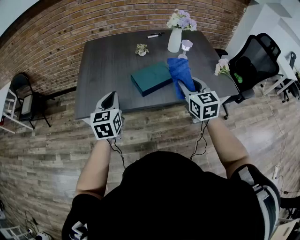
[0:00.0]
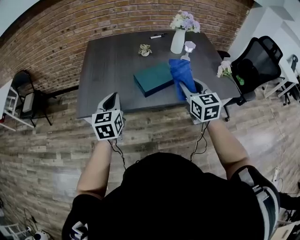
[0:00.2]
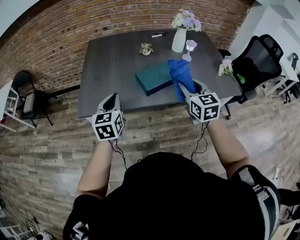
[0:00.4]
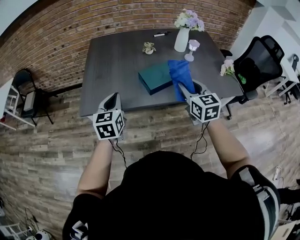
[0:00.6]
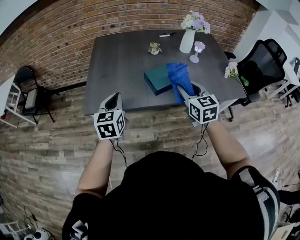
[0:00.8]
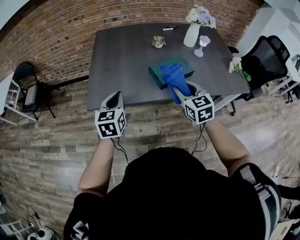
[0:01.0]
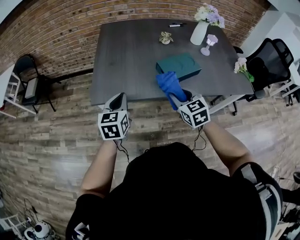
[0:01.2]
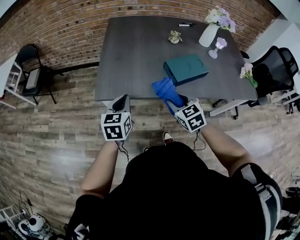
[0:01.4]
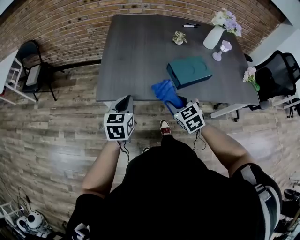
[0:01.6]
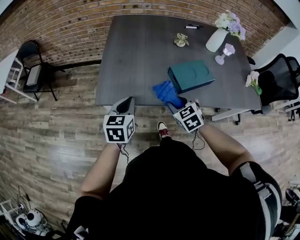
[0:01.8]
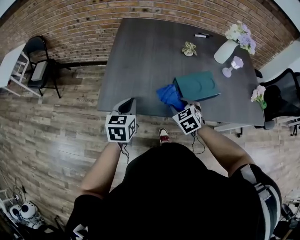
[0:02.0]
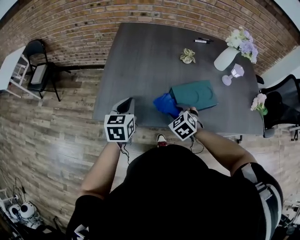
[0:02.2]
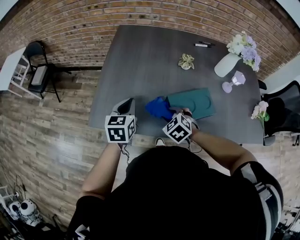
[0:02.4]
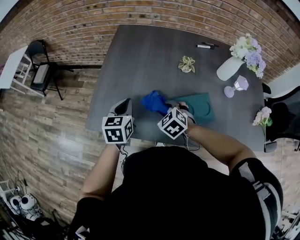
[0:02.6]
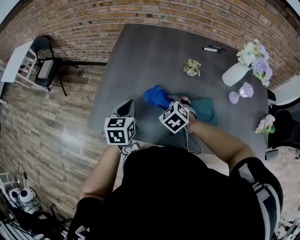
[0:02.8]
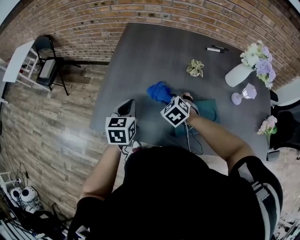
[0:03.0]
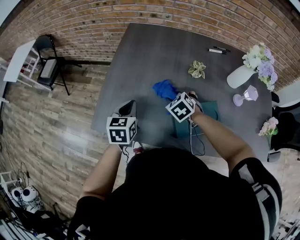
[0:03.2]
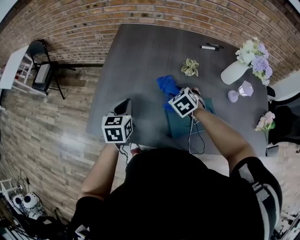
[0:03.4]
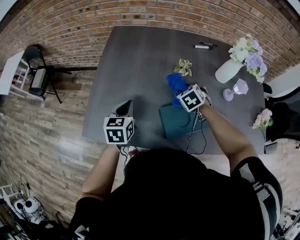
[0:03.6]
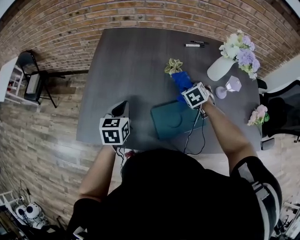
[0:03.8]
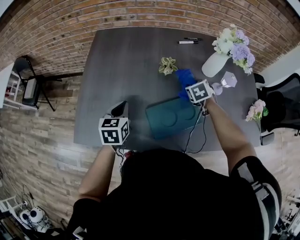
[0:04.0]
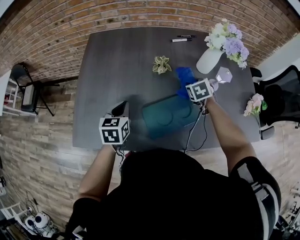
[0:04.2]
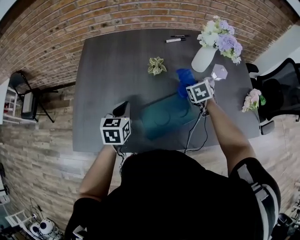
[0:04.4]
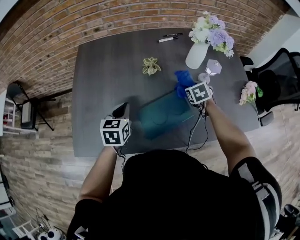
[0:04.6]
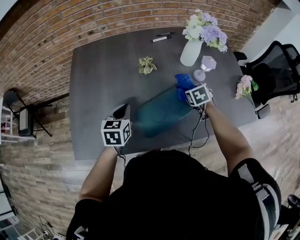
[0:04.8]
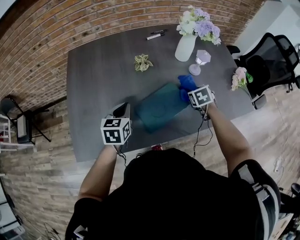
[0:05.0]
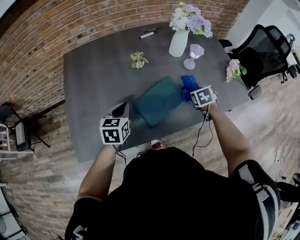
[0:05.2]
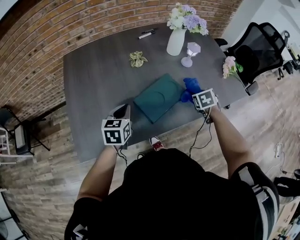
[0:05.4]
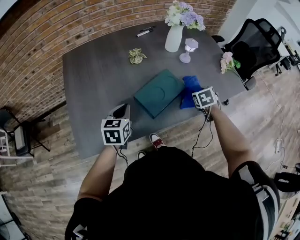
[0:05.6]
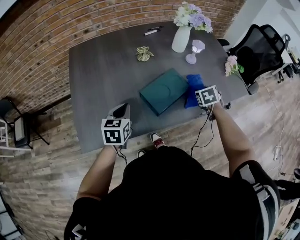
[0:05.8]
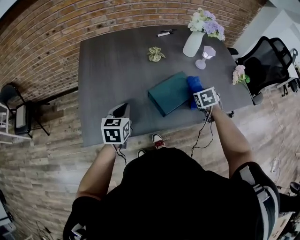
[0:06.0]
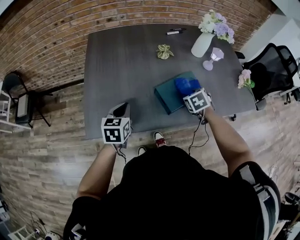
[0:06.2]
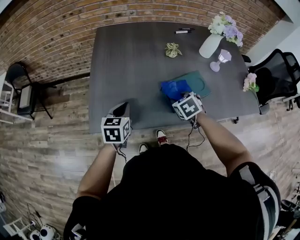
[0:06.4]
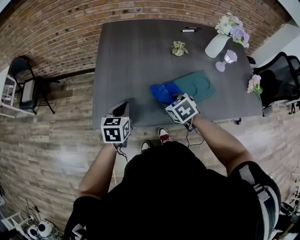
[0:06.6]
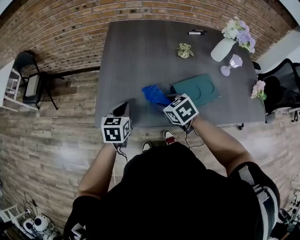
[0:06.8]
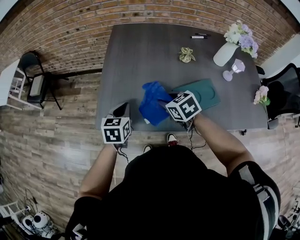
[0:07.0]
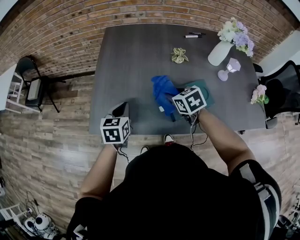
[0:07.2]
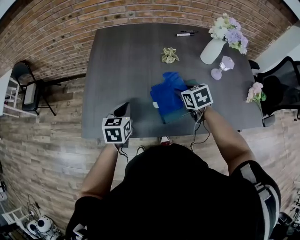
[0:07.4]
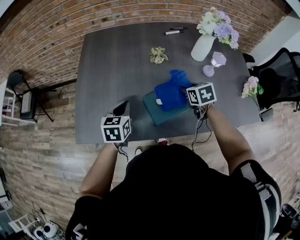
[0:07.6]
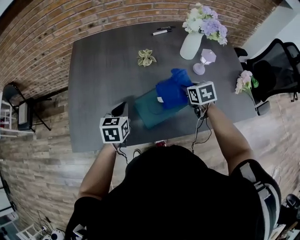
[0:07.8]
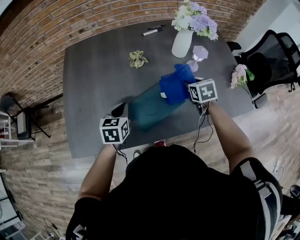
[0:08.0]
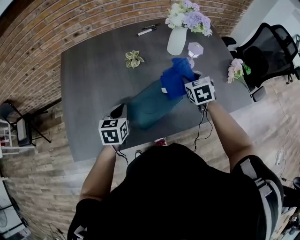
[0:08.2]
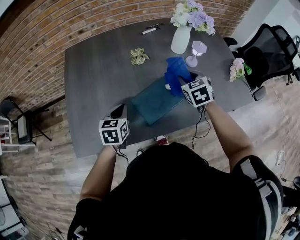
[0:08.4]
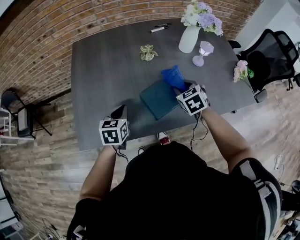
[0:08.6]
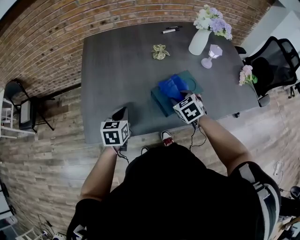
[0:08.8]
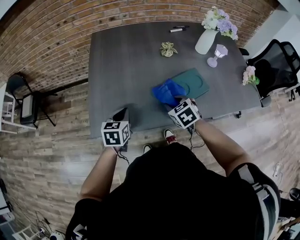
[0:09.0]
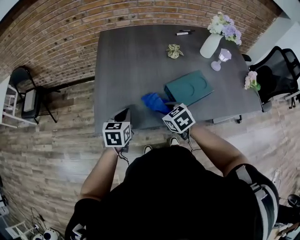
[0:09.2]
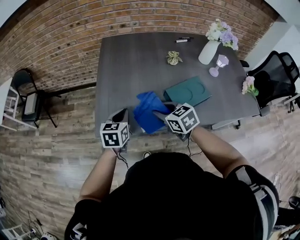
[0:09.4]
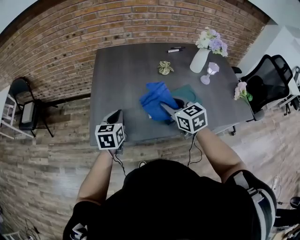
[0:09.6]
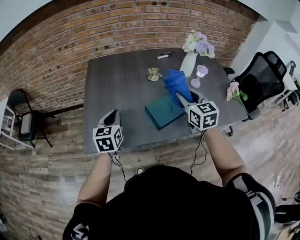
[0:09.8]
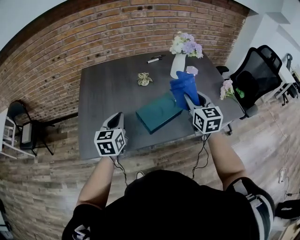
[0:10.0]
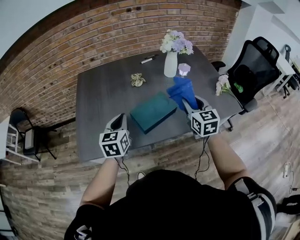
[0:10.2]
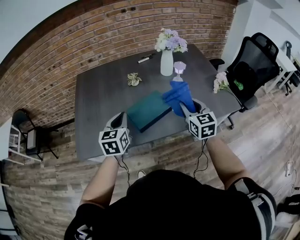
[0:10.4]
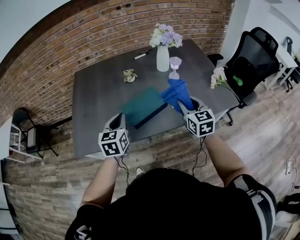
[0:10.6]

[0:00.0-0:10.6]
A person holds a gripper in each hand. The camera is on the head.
0:00.0 to 0:01.6: The right gripper goes roughly 30 cm to the left and downward, and changes its angle by approximately 30 degrees, while the left gripper shifts about 15 cm to the left and downward.
0:01.6 to 0:03.0: The left gripper heads forward and to the right, covering some 20 cm. The right gripper goes roughly 25 cm forward, and rotates some 20 degrees.
0:03.0 to 0:04.6: The right gripper shifts by some 35 cm, and turns by about 40 degrees; the left gripper changes place by about 15 cm.
0:04.6 to 0:06.0: The two grippers go approximately 15 cm backward.
0:06.0 to 0:07.6: The right gripper swivels approximately 30 degrees.
0:07.6 to 0:09.0: The right gripper is displaced to the left and backward by about 25 cm. Meanwhile the left gripper travels to the left and backward by roughly 15 cm.
0:09.0 to 0:10.6: The two grippers go approximately 30 cm to the right and upward. The right gripper angles its fingers upward, by approximately 40 degrees.

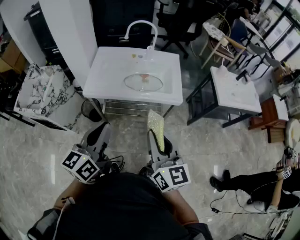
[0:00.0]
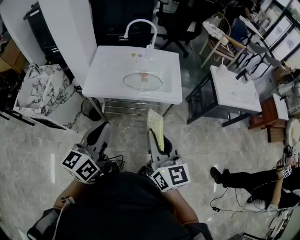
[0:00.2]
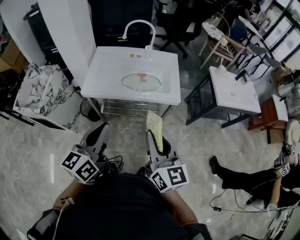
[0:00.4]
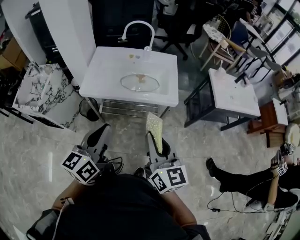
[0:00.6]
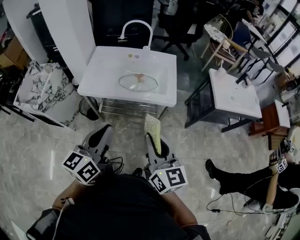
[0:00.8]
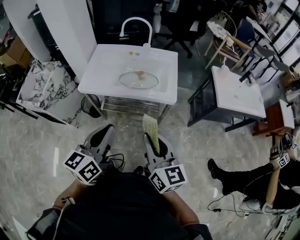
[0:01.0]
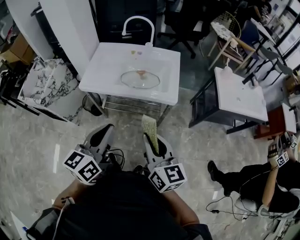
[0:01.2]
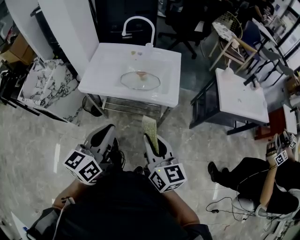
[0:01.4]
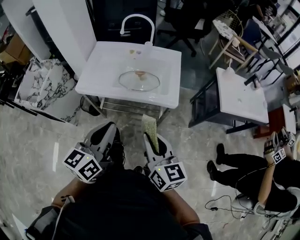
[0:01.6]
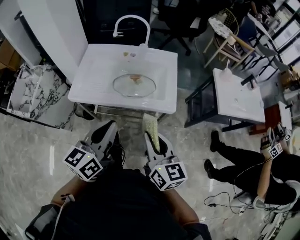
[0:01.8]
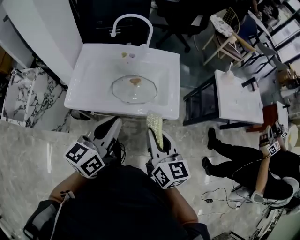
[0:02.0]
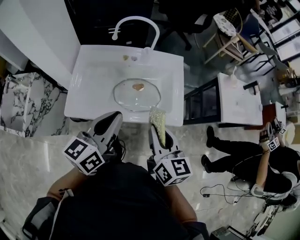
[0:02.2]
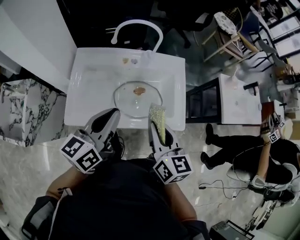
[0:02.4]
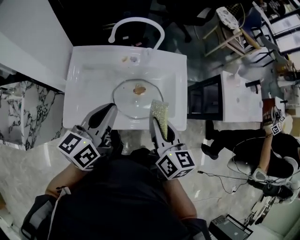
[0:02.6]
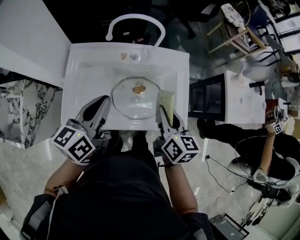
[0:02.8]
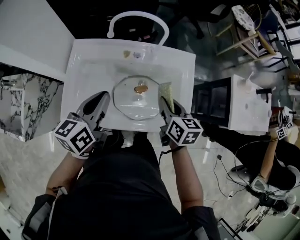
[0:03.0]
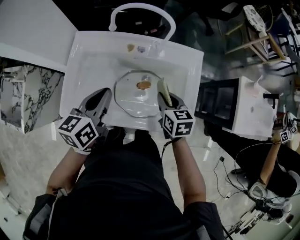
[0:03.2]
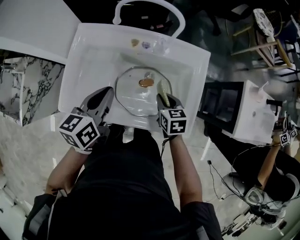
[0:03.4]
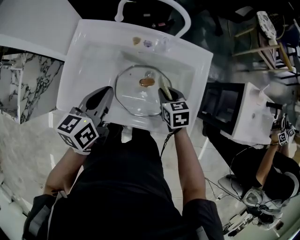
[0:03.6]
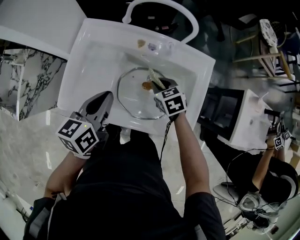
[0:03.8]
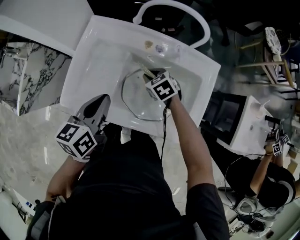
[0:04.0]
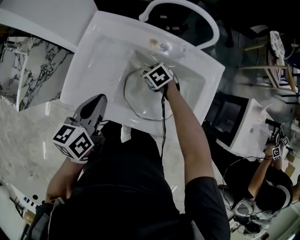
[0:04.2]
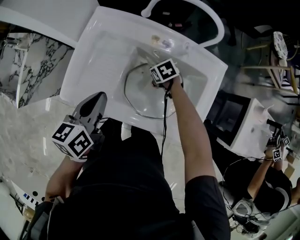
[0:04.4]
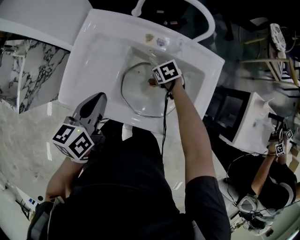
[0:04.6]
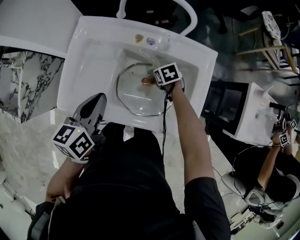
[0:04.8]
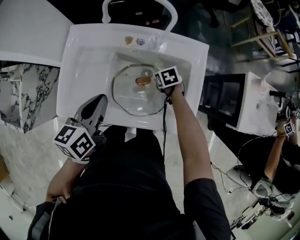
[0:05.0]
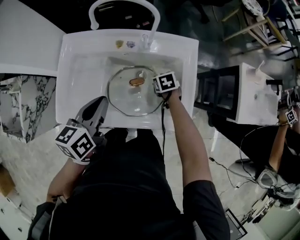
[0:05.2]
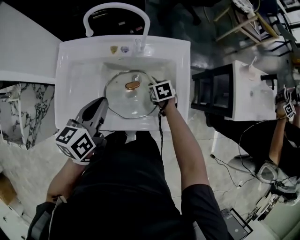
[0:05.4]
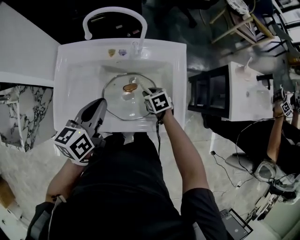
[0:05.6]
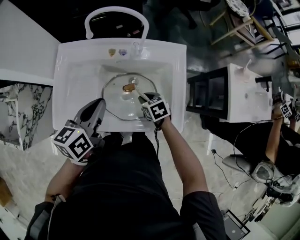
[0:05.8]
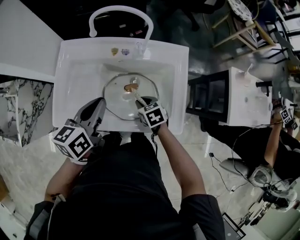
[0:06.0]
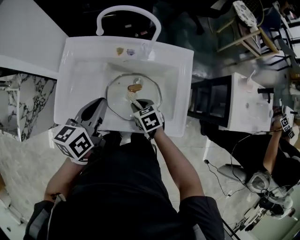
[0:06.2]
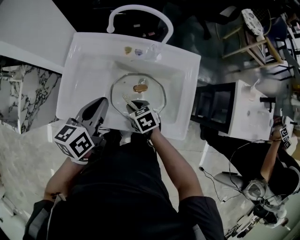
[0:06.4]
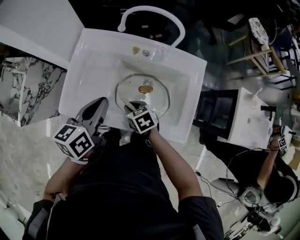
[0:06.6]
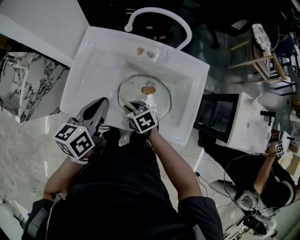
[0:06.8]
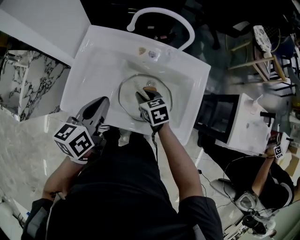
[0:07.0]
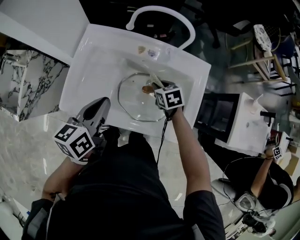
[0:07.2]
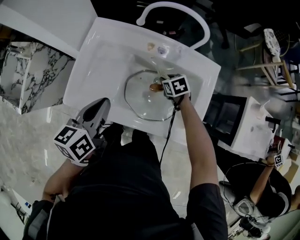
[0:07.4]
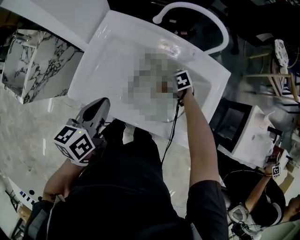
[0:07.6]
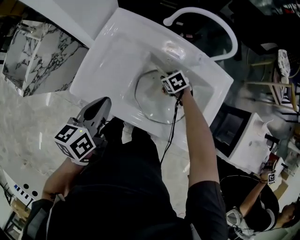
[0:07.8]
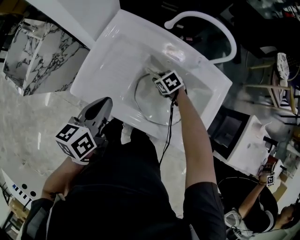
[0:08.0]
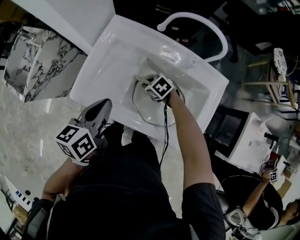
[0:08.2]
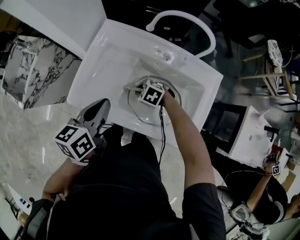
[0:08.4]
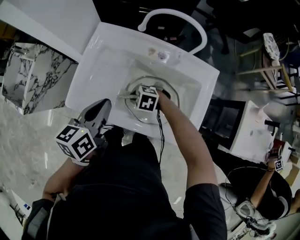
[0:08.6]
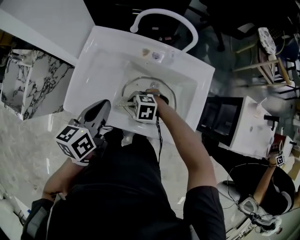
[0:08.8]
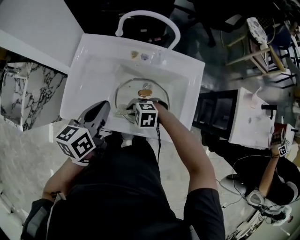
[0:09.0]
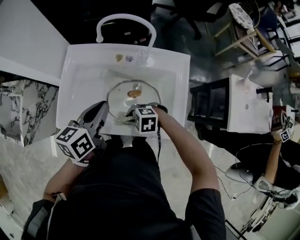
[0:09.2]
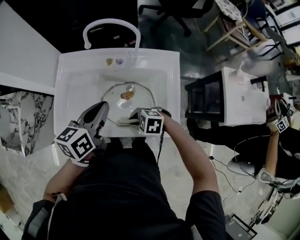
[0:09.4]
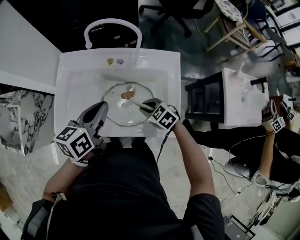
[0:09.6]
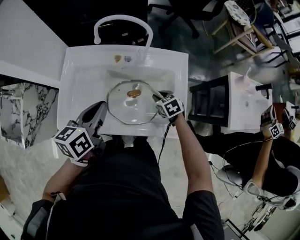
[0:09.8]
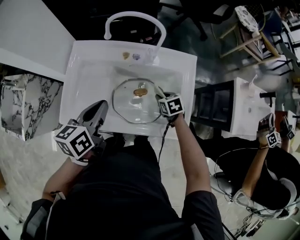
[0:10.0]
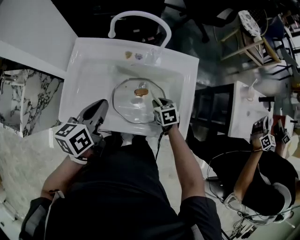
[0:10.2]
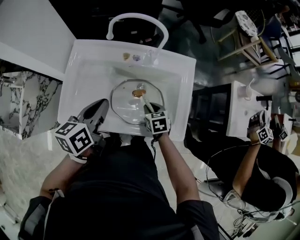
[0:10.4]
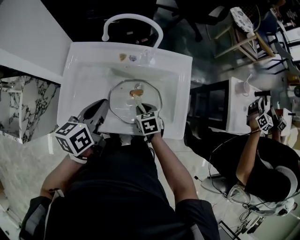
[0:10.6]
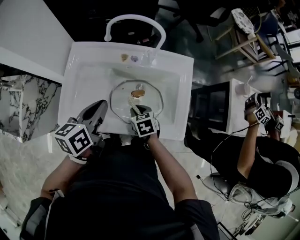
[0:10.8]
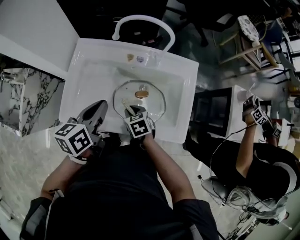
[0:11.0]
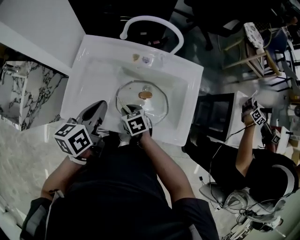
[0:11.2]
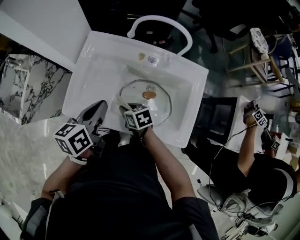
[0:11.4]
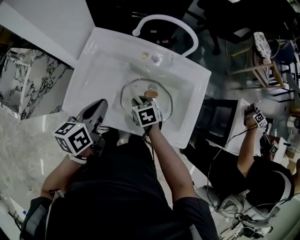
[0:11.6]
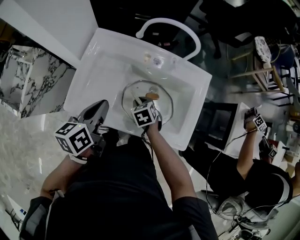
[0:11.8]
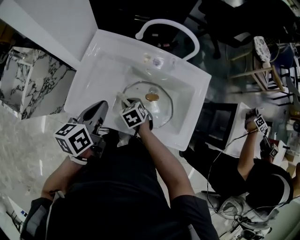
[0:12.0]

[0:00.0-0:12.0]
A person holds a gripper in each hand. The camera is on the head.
0:00.0 to 0:01.6: The left gripper heads to the right, covering roughly 10 cm. Meanwhile the right gripper is displaced to the right, downward and forward by roughly 10 cm.
0:01.6 to 0:03.0: The pair of grippers is taken forward, roughly 40 cm. The right gripper turns by some 30 degrees.
0:03.0 to 0:04.4: The left gripper shifts approximately 10 cm downward, while the right gripper travels downward by roughly 25 cm, and points its fingers approximately 30 degrees further downward.
0:04.4 to 0:06.0: The right gripper changes place by some 15 cm, and changes its angle by approximately 20 degrees, while the left gripper changes place by some 10 cm.
0:06.0 to 0:07.6: The left gripper goes some 10 cm to the left; the right gripper moves forward and downward, roughly 15 cm, travels to the left and back again, approximately 15 cm each way, and swivels roughly 20 degrees.
0:07.6 to 0:09.0: The right gripper changes place by approximately 20 cm, and twists approximately 50 degrees counterclockwise, seen from behind; the left gripper ends up some 10 cm from where it was.
0:09.0 to 0:10.4: The right gripper rotates around the line of its fingers by some 70 degrees, clockwise from behind.
0:10.4 to 0:12.0: The right gripper goes left and right, some 20 cm each way, reversing 2 times, and rotates about 30 degrees, while the left gripper moves to the left, roughly 10 cm.

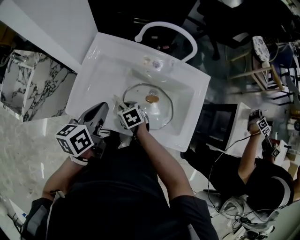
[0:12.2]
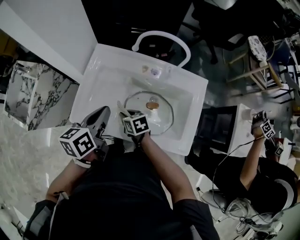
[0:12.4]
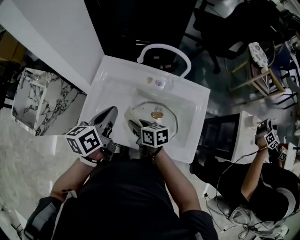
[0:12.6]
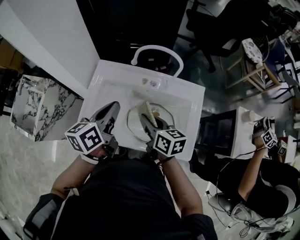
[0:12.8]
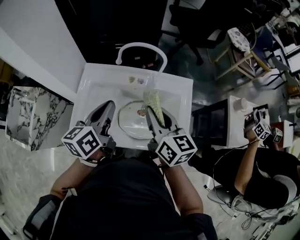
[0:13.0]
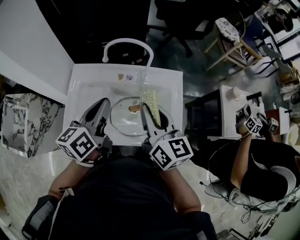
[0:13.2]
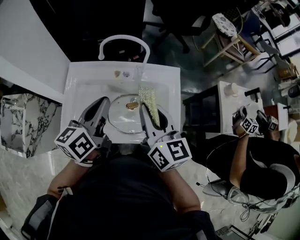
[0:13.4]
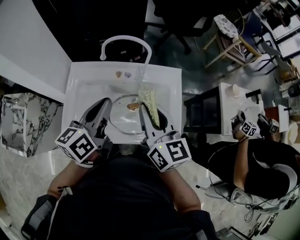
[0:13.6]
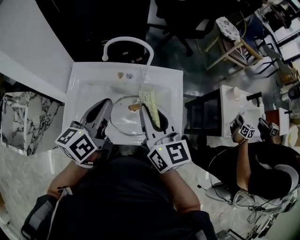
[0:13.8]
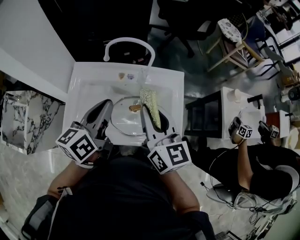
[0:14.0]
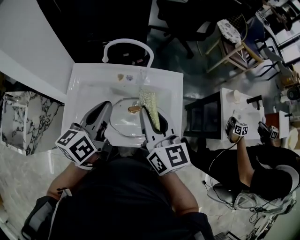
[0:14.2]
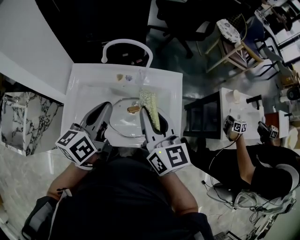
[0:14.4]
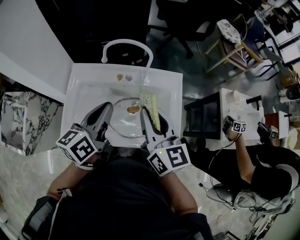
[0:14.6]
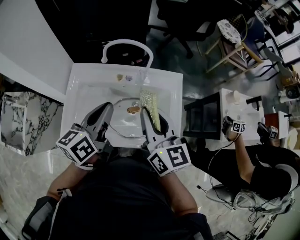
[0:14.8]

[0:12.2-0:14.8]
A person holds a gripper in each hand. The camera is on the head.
0:12.2 to 0:13.4: The right gripper goes approximately 35 cm upward, and points its fingers about 50 degrees further upward. The left gripper moves upward, some 10 cm, and turns by some 20 degrees.
0:13.4 to 0:14.8: There are only small adjustments of the grippers.
